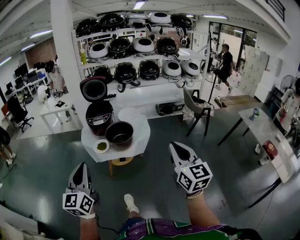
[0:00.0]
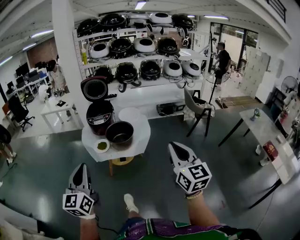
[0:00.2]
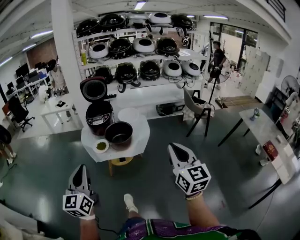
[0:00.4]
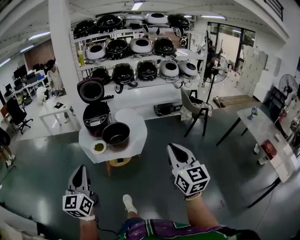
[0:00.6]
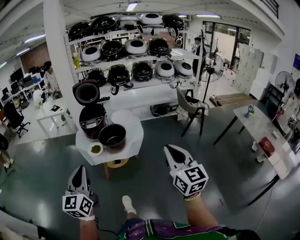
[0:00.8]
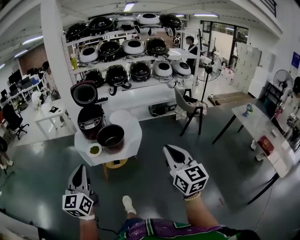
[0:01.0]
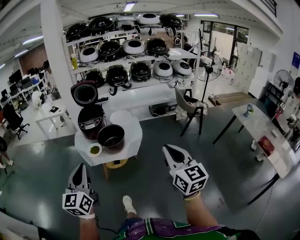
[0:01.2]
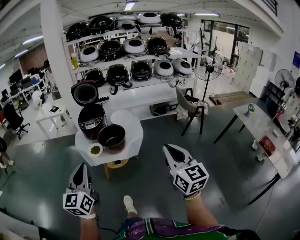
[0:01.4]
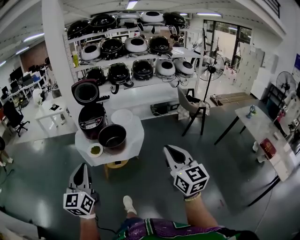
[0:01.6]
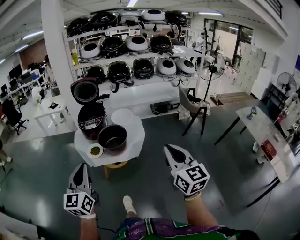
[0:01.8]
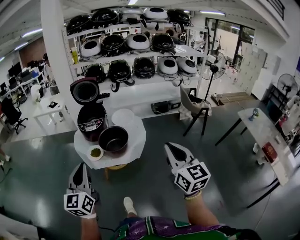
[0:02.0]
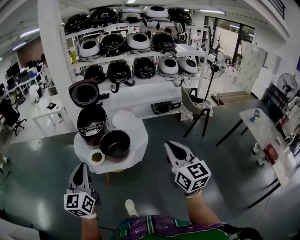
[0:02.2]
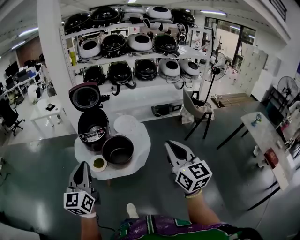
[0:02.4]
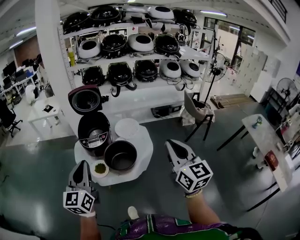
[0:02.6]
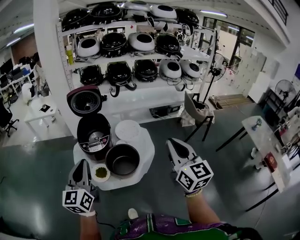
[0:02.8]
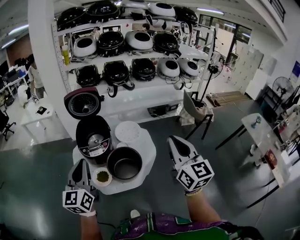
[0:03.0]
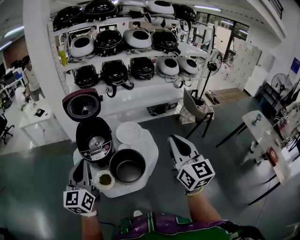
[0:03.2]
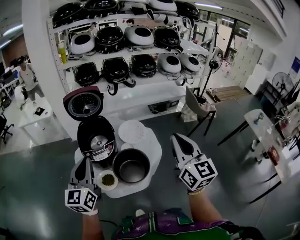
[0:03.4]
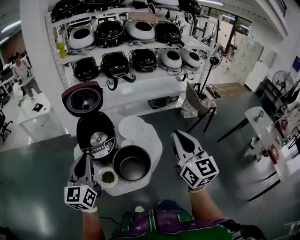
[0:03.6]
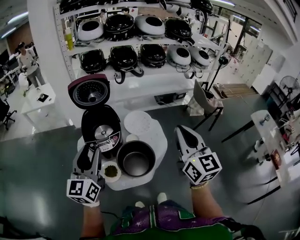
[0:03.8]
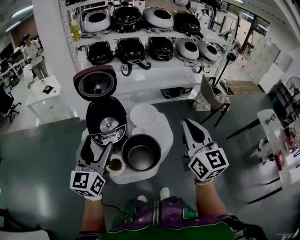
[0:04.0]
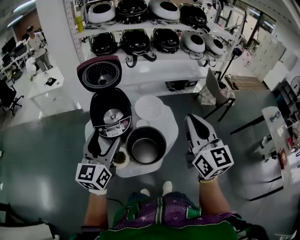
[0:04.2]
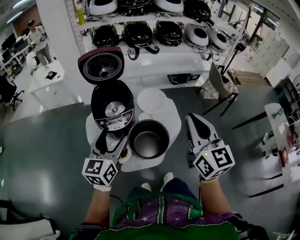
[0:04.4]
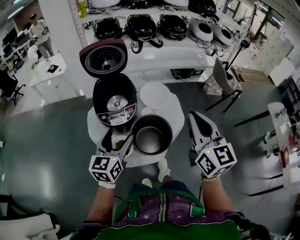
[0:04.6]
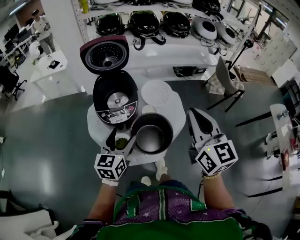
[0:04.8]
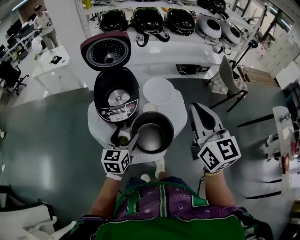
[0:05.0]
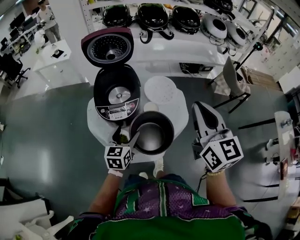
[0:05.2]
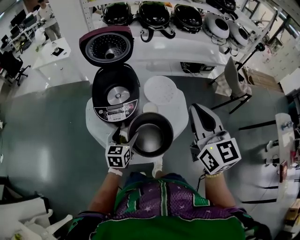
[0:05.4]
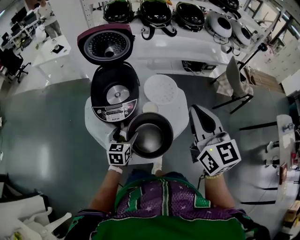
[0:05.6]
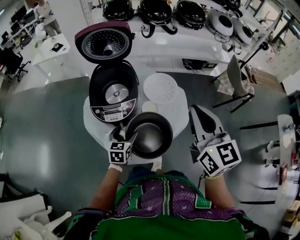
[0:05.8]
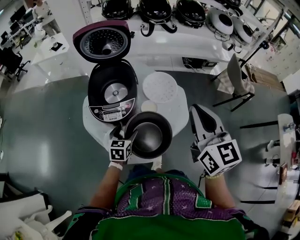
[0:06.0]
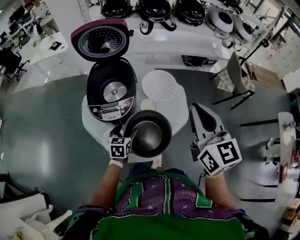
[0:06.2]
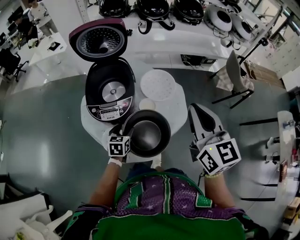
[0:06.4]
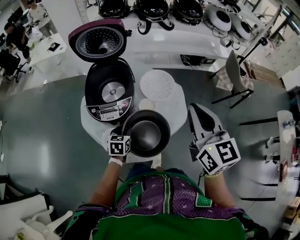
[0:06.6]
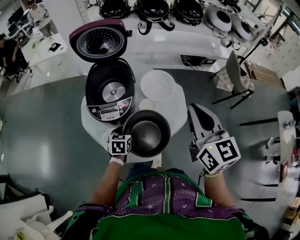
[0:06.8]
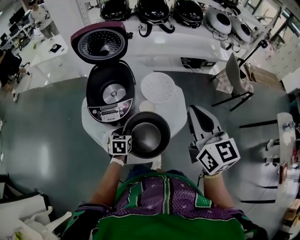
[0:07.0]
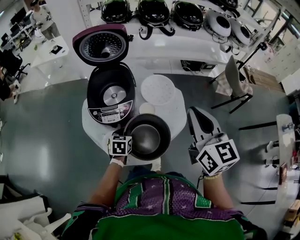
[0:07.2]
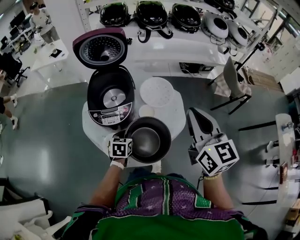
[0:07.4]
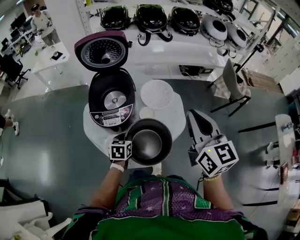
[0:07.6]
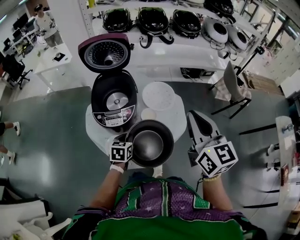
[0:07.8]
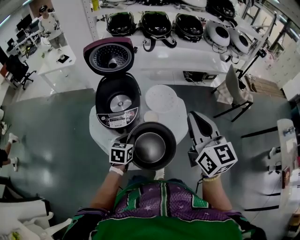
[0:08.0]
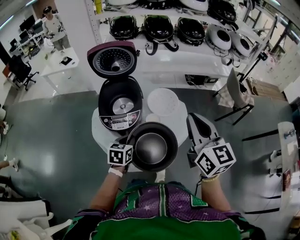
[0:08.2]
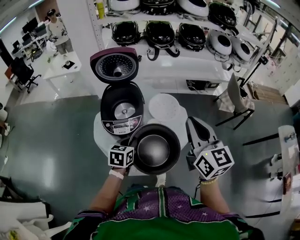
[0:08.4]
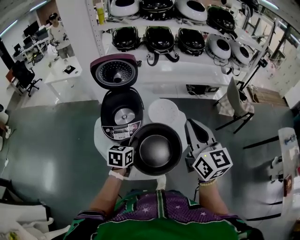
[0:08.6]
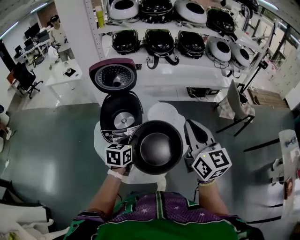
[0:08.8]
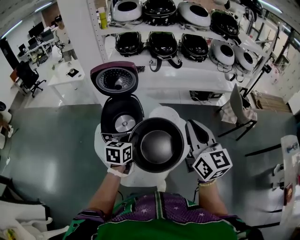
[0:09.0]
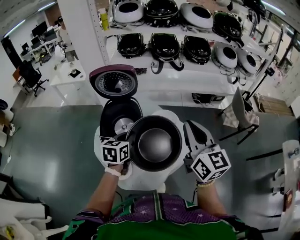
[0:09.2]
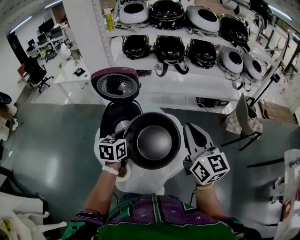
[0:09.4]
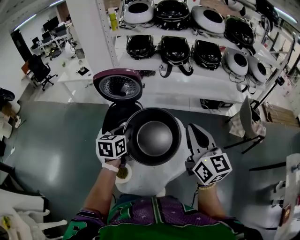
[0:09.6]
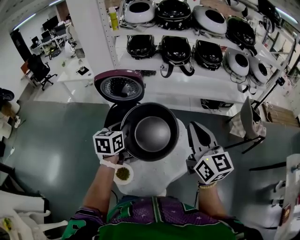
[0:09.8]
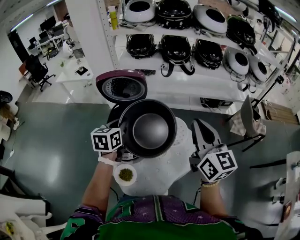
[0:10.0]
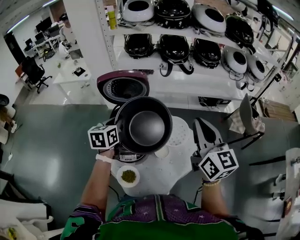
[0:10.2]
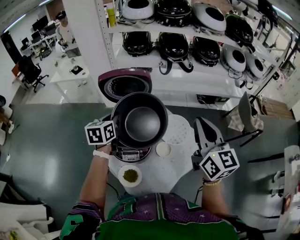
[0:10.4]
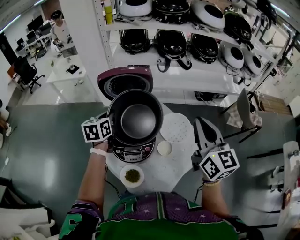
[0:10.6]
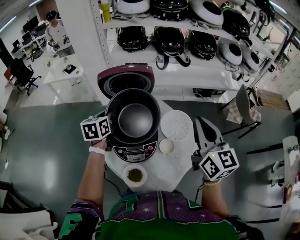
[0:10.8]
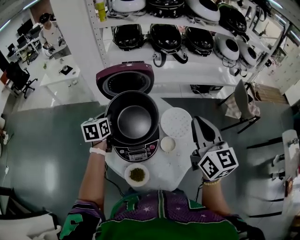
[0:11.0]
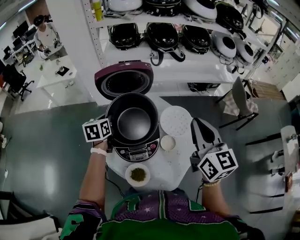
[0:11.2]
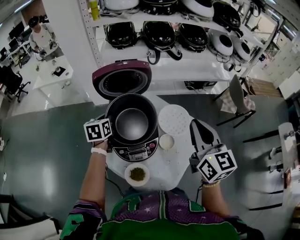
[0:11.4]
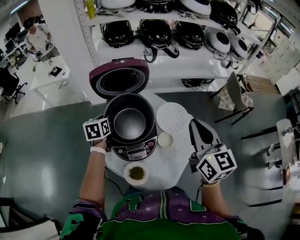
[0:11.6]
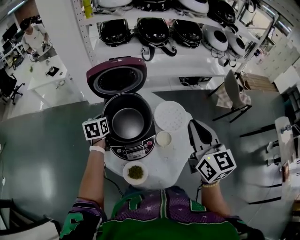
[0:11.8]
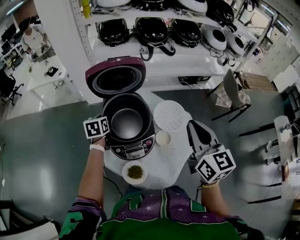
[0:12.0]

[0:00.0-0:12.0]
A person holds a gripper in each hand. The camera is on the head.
0:00.0 to 0:01.6: The left gripper ends up some 5 cm from where it was.
0:01.6 to 0:03.0: Both grippers travel together forward, approximately 35 cm.
0:03.0 to 0:04.4: The right gripper moves to the left, forward and downward, roughly 15 cm, while the left gripper heads downward and forward, covering roughly 15 cm, and opens.
0:04.4 to 0:06.0: The right gripper moves forward and downward, roughly 15 cm, while the left gripper is displaced downward by some 30 cm, and angles its fingers downward, by approximately 30 degrees.
0:06.0 to 0:07.6: The left gripper closes its fingers.
0:07.6 to 0:09.0: The left gripper moves upward, some 20 cm. Meanwhile the right gripper travels upward by roughly 5 cm.
0:09.0 to 0:10.4: The right gripper goes roughly 10 cm forward. Meanwhile the left gripper moves forward and to the left, approximately 20 cm.
0:10.4 to 0:12.0: The left gripper heads downward and to the left, covering about 15 cm. The right gripper shifts roughly 10 cm to the left and downward.

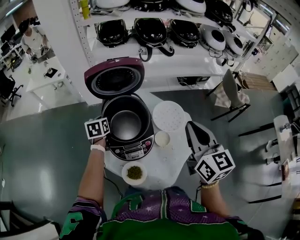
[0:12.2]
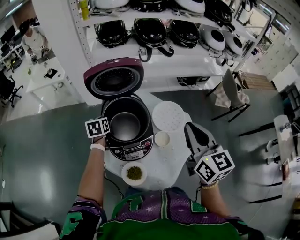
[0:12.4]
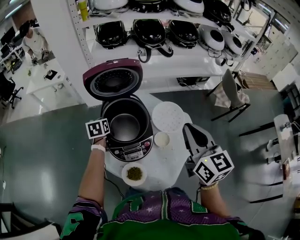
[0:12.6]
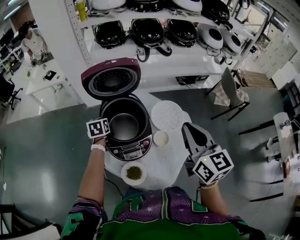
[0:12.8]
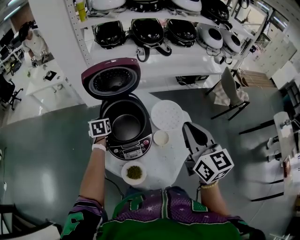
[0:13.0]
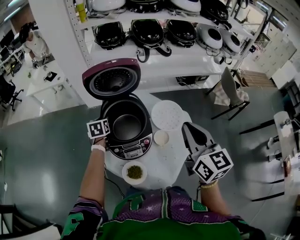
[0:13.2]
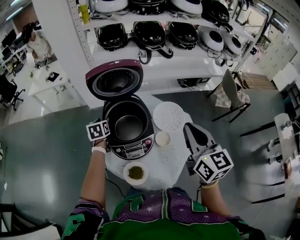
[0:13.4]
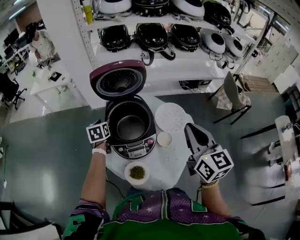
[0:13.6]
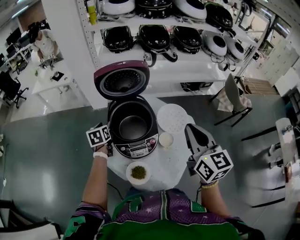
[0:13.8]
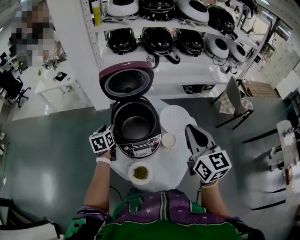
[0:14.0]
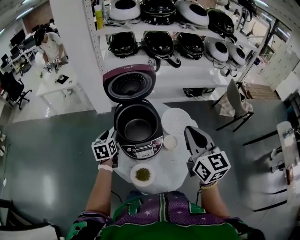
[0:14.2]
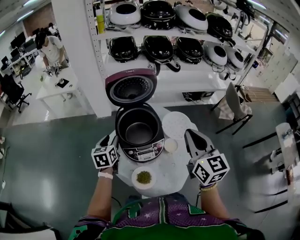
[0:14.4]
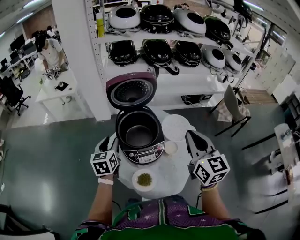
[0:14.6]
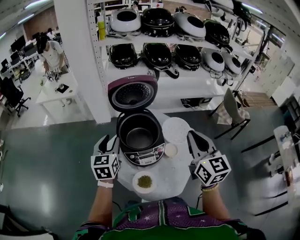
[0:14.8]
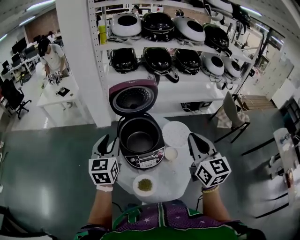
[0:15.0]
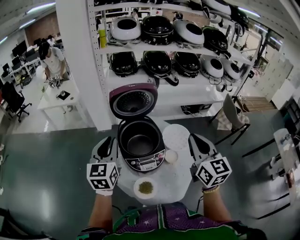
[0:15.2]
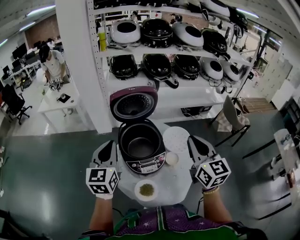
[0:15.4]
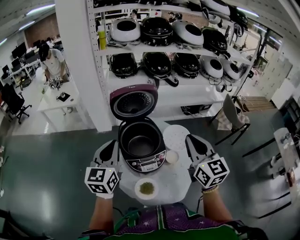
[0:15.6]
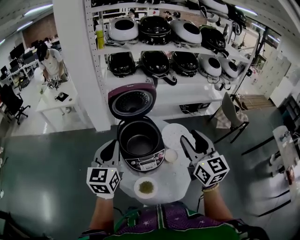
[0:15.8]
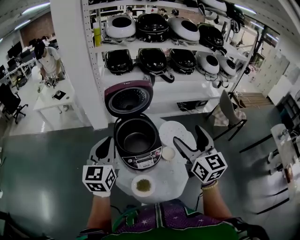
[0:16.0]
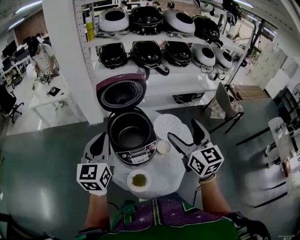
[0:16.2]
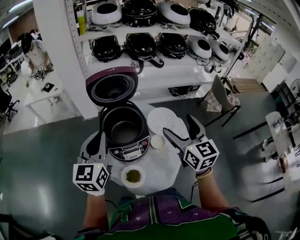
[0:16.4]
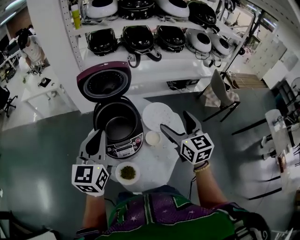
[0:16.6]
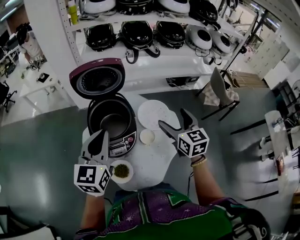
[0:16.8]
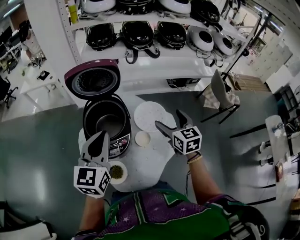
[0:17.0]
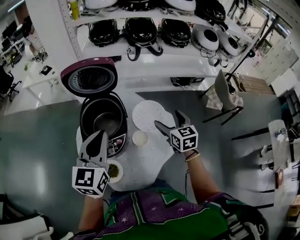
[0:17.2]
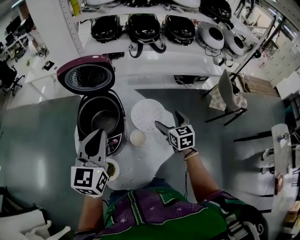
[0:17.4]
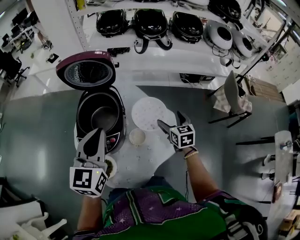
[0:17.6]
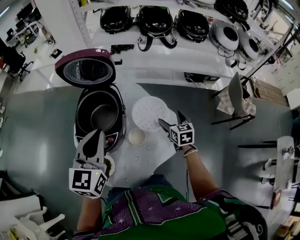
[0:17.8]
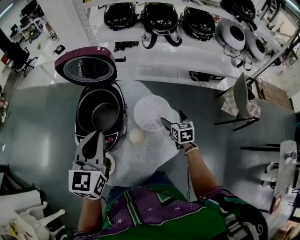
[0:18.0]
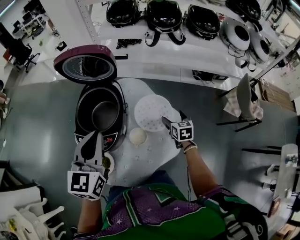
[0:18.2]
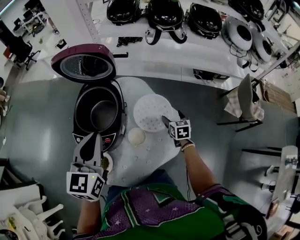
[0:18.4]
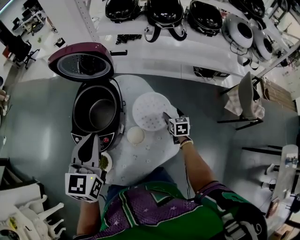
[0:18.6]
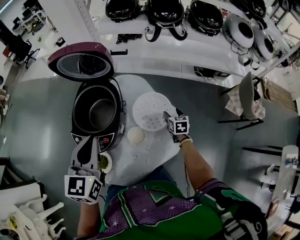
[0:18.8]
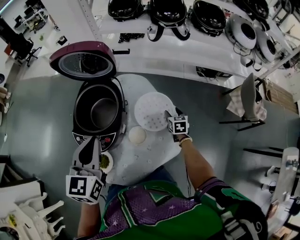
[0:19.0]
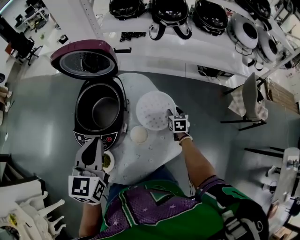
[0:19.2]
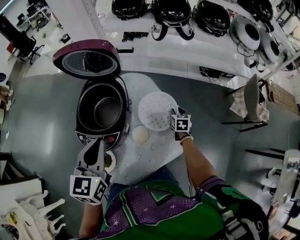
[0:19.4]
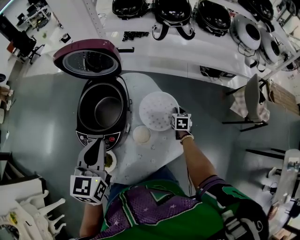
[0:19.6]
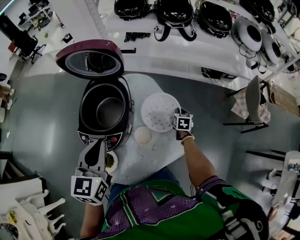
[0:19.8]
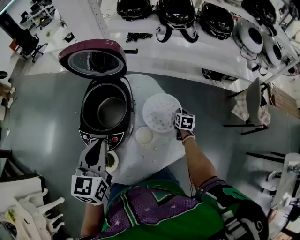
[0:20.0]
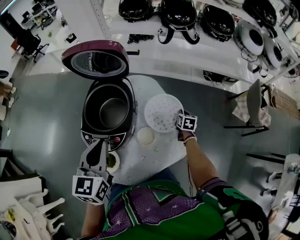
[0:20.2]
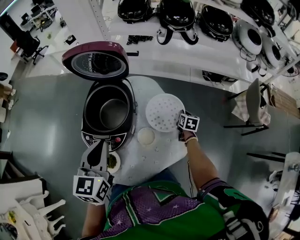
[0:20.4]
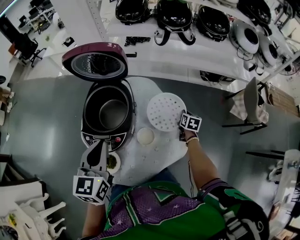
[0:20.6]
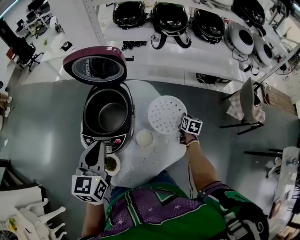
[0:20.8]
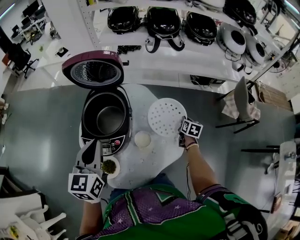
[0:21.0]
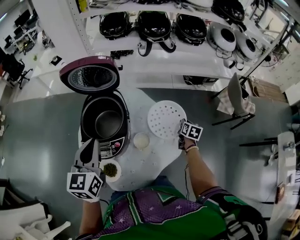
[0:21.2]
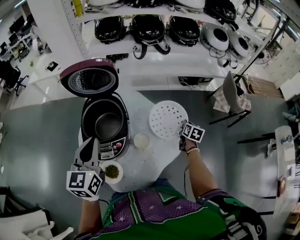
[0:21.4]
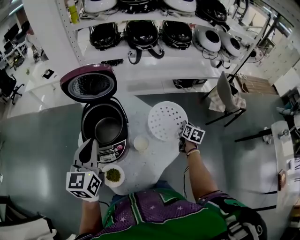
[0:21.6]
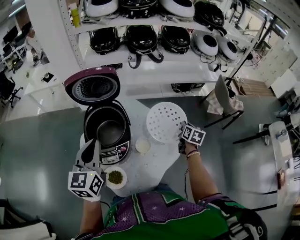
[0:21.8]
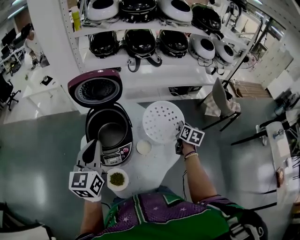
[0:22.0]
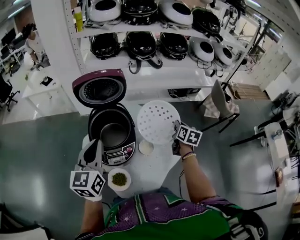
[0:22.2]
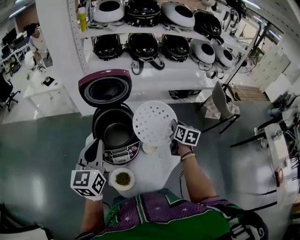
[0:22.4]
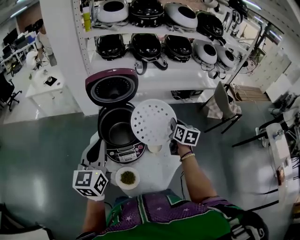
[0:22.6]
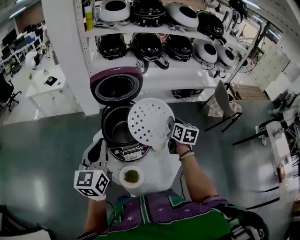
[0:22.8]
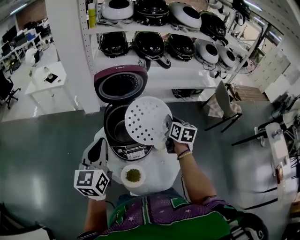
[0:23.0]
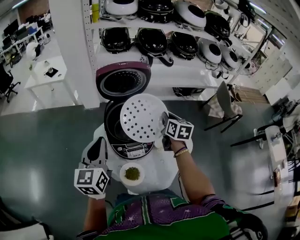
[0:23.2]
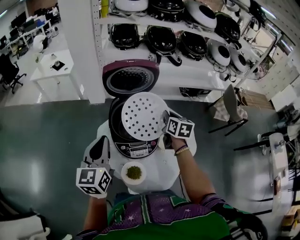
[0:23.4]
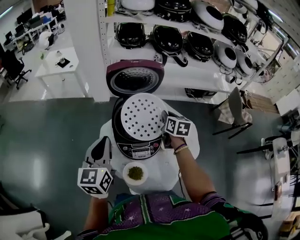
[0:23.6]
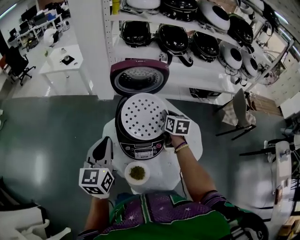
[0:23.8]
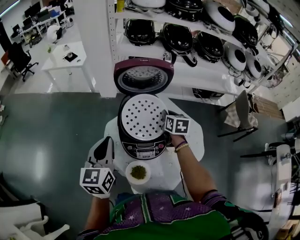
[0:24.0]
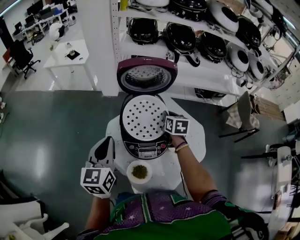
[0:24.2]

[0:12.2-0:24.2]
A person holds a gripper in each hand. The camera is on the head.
0:12.2 to 0:13.8: The left gripper changes place by approximately 5 cm, and opens up.
0:13.8 to 0:15.2: The left gripper goes roughly 25 cm upward and backward, and points its fingers approximately 30 degrees further upward.
0:15.2 to 0:16.6: The right gripper heads downward and to the right, covering about 10 cm, and opens, while the left gripper heads to the right, covering approximately 10 cm.
0:16.6 to 0:18.2: The right gripper shifts approximately 40 cm downward, to the right and forward, and rotates some 30 degrees; the left gripper is displaced to the right by some 15 cm.
0:18.2 to 0:19.8: The right gripper heads downward and forward, covering approximately 10 cm, and closes.
0:19.8 to 0:21.2: The left gripper heads to the left, covering roughly 5 cm. Meanwhile the right gripper shifts some 15 cm backward, upward and to the right, and swivels about 20 degrees.
0:21.2 to 0:22.6: The left gripper travels to the left by some 10 cm. Meanwhile the right gripper heads upward, to the left and backward, covering some 30 cm.
0:22.6 to 0:24.2: The right gripper goes roughly 20 cm to the left and forward, and rotates approximately 20 degrees, while the left gripper moves to the left and downward, approximately 10 cm.
